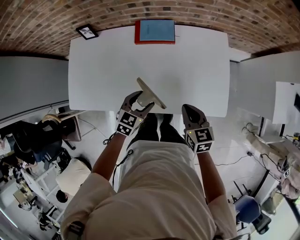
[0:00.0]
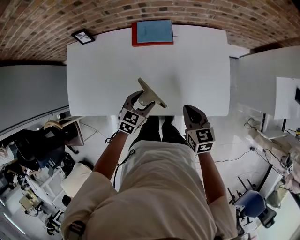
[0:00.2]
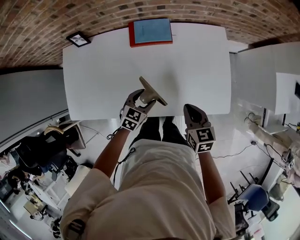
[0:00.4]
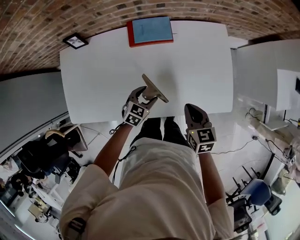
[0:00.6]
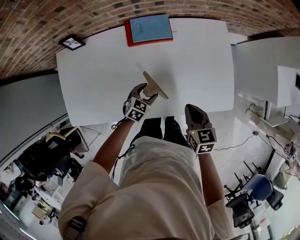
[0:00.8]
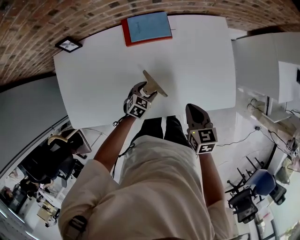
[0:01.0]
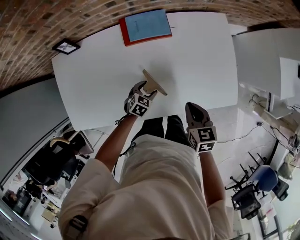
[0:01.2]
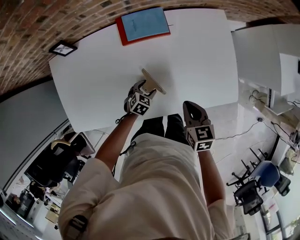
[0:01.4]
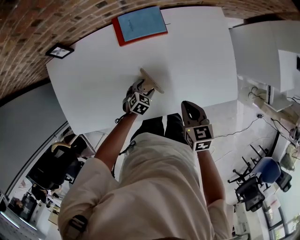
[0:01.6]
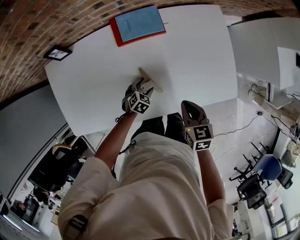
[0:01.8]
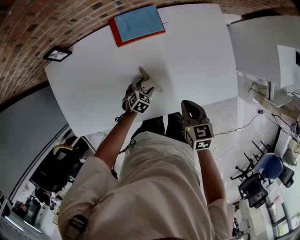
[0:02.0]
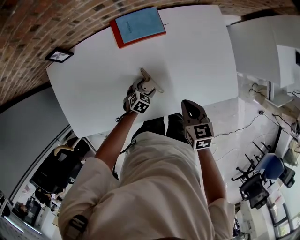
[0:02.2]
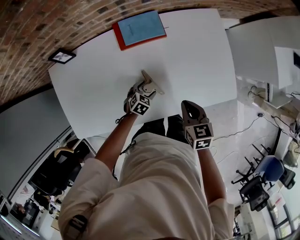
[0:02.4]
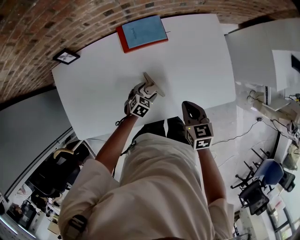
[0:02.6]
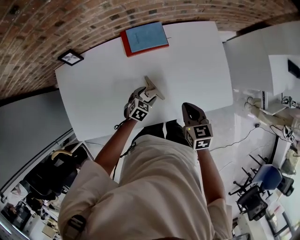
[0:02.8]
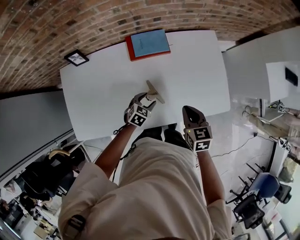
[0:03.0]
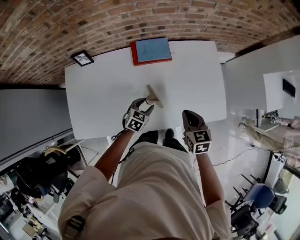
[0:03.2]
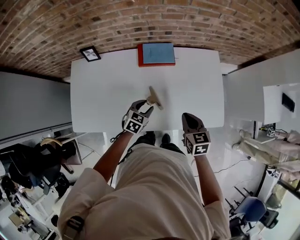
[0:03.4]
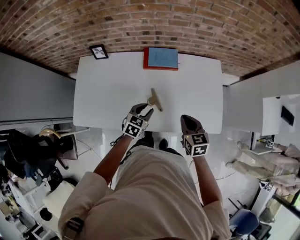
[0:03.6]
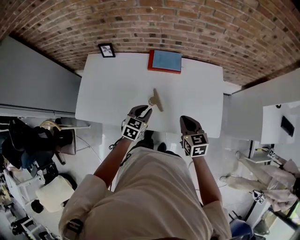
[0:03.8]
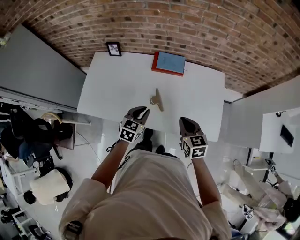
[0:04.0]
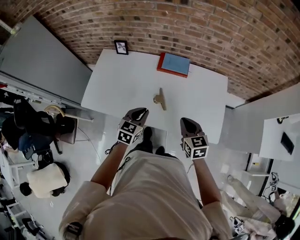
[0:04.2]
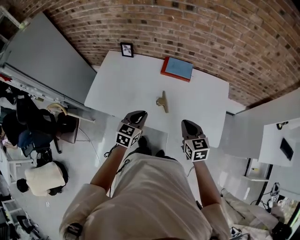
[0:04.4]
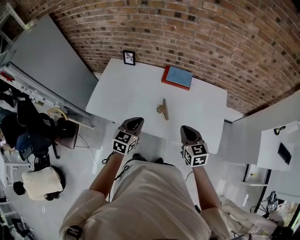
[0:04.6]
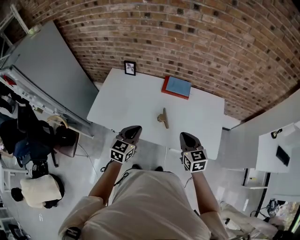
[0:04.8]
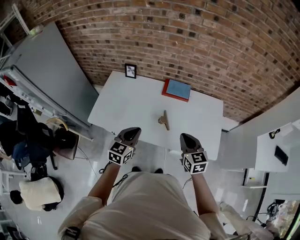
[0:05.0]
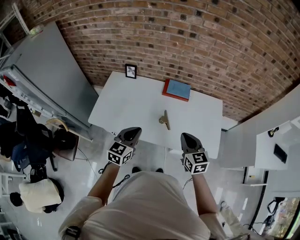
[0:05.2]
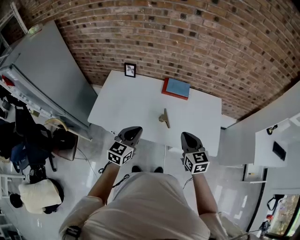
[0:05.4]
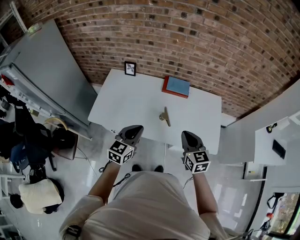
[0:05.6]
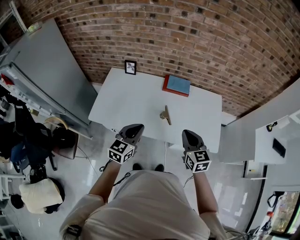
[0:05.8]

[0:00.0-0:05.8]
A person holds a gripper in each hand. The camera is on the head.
0:00.0 to 0:01.4: The right gripper heads downward and to the left, covering about 10 cm. The left gripper goes approximately 20 cm downward, and turns by about 20 degrees.
0:01.4 to 0:02.8: The left gripper shifts about 5 cm upward.
0:02.8 to 0:04.4: The left gripper goes about 30 cm upward, turns by about 50 degrees, and closes, while the right gripper goes about 10 cm upward, and swivels some 30 degrees.
0:04.4 to 0:05.8: Both grippers move upward, to the left and backward, about 15 cm.

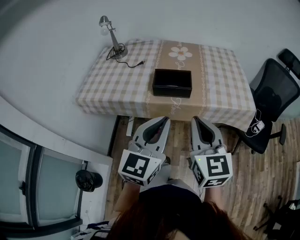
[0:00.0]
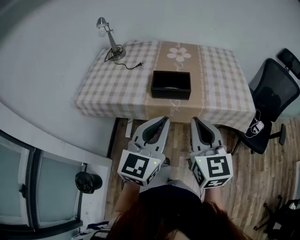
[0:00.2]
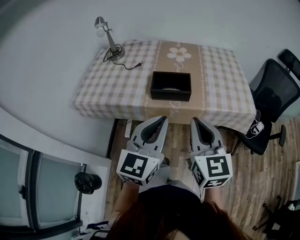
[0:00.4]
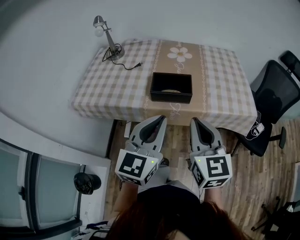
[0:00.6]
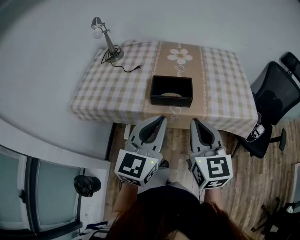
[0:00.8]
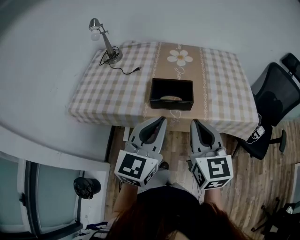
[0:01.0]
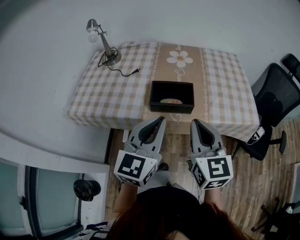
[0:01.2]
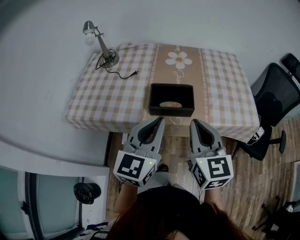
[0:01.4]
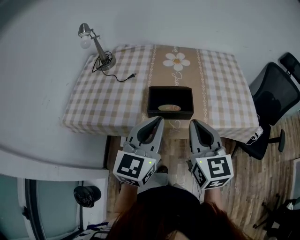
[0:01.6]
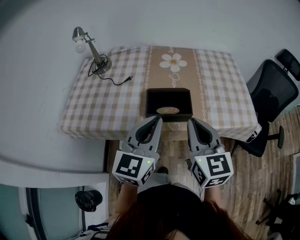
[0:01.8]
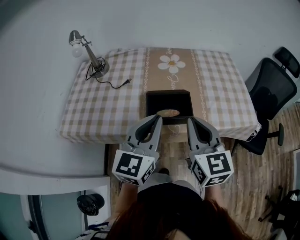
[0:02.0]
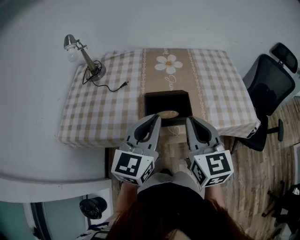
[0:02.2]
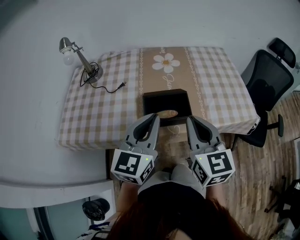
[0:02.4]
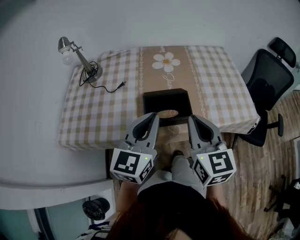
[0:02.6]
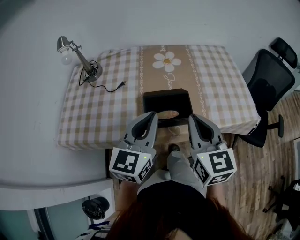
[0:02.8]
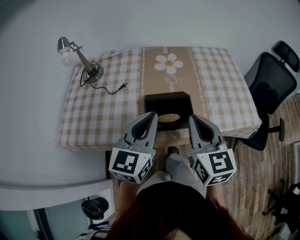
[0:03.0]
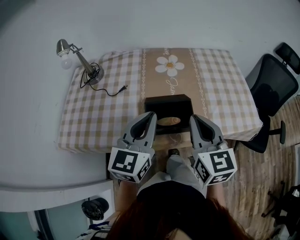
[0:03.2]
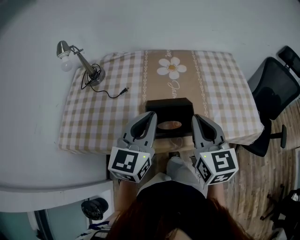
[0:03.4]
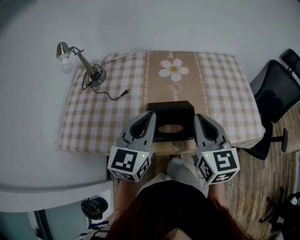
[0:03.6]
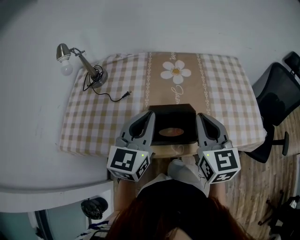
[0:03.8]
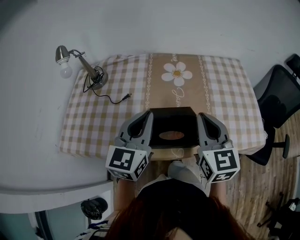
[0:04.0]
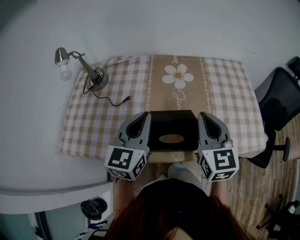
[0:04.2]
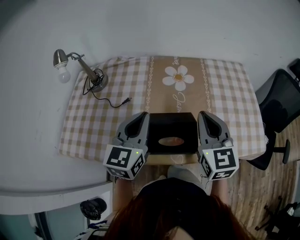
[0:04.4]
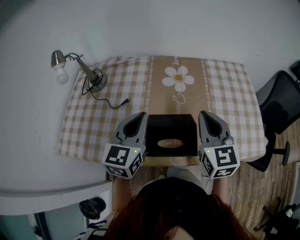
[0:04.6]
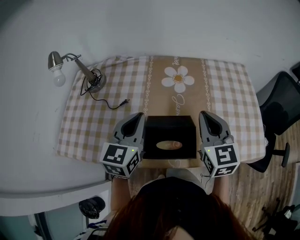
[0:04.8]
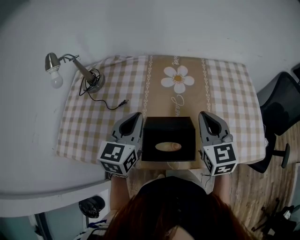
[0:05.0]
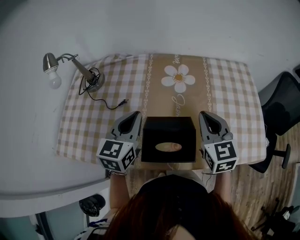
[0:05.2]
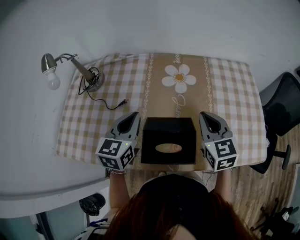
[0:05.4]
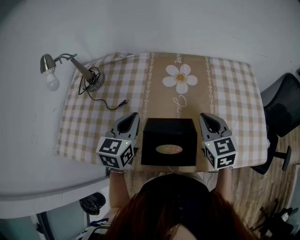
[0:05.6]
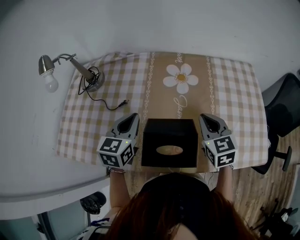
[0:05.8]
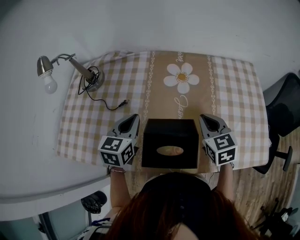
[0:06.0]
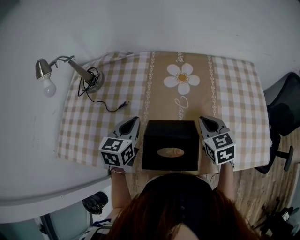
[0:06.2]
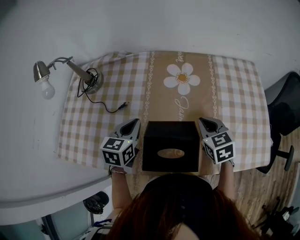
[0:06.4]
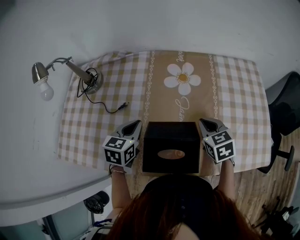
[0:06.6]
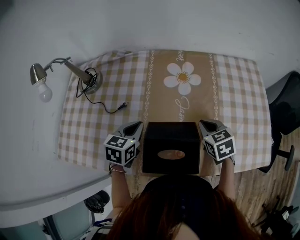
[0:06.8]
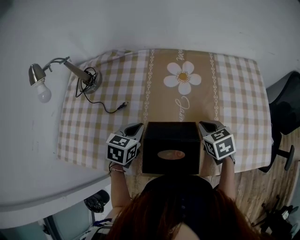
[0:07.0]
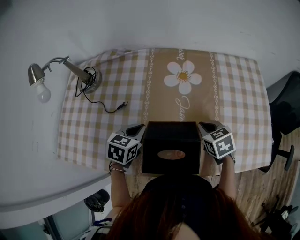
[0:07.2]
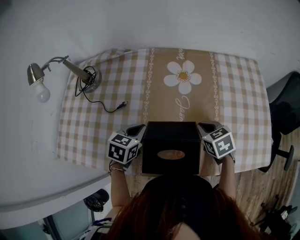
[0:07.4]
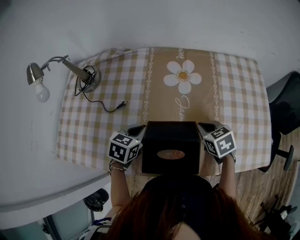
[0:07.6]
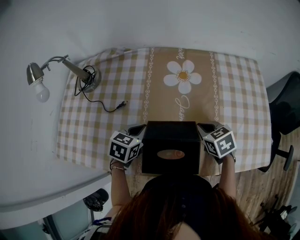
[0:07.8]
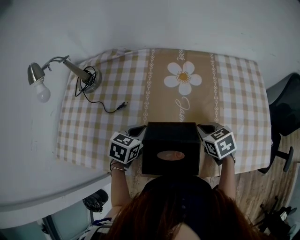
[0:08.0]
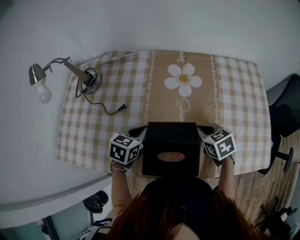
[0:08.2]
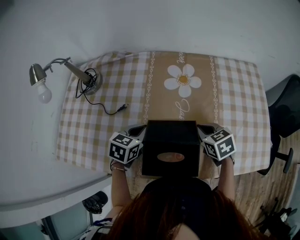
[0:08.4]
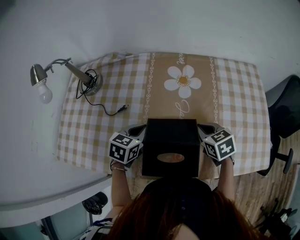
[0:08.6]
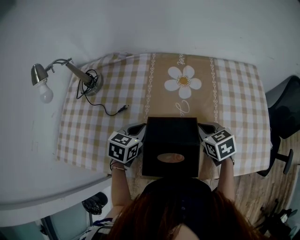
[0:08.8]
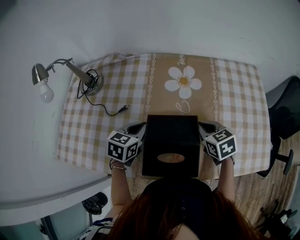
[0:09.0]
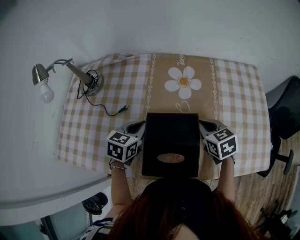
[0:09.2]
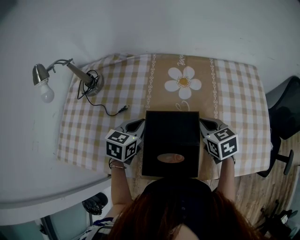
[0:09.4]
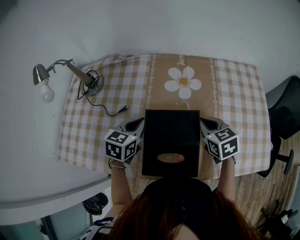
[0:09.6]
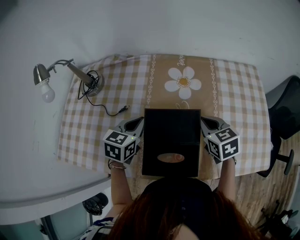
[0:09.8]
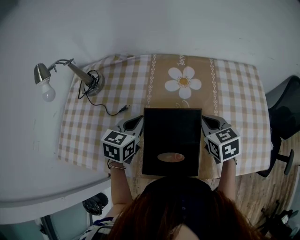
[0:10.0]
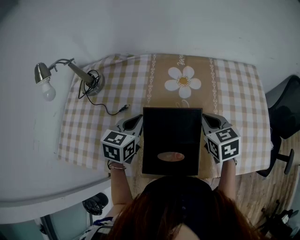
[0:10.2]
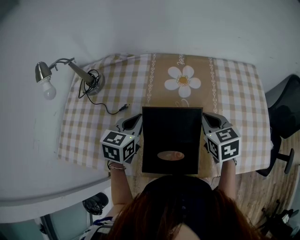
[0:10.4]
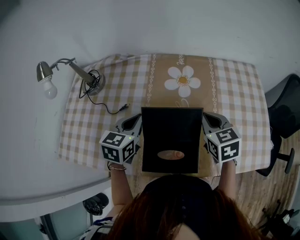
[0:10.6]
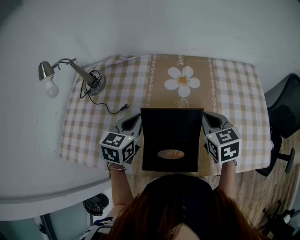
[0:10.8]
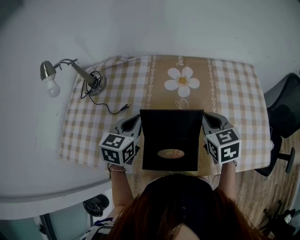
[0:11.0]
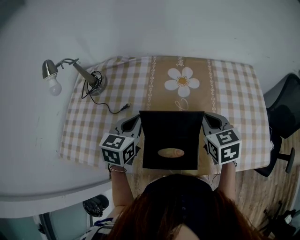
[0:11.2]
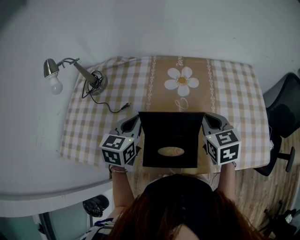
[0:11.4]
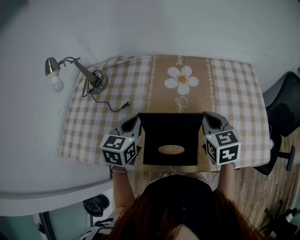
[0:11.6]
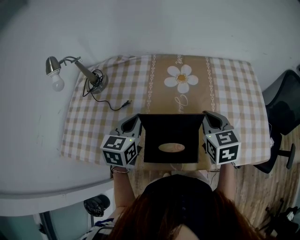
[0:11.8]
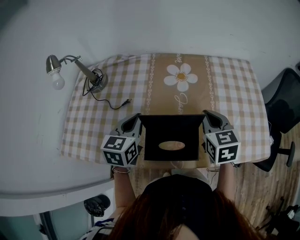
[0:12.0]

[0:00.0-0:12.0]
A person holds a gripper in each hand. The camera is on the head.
0:00.0 to 0:01.6: The two grippers go some 15 cm forward.
0:01.6 to 0:03.0: The grippers both shift forward by about 10 cm.
0:03.0 to 0:04.4: The two grippers go about 10 cm forward.
0:04.4 to 0:06.0: The grippers both shift downward and forward by some 15 cm. The right gripper swivels approximately 20 degrees.
0:06.0 to 0:07.6: Both grippers travel together downward, approximately 10 cm. The left gripper rotates about 30 degrees. The right gripper rotates some 20 degrees.
0:07.6 to 0:09.0: The grippers make only small movements.
0:09.0 to 0:10.4: Both grippers travel together upward, roughly 5 cm.
0:10.4 to 0:12.0: The left gripper moves about 5 cm. The right gripper ends up about 5 cm from where it was.

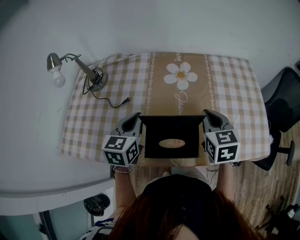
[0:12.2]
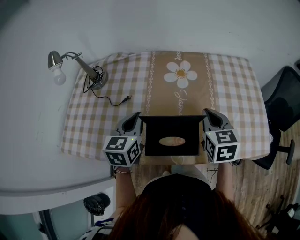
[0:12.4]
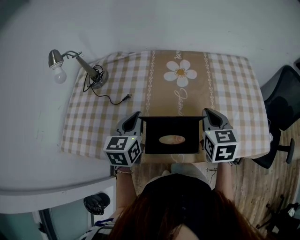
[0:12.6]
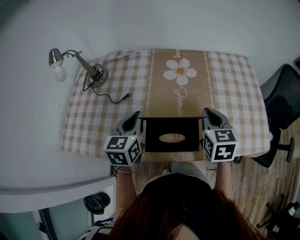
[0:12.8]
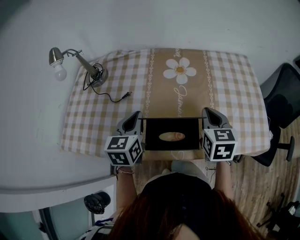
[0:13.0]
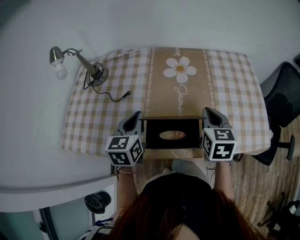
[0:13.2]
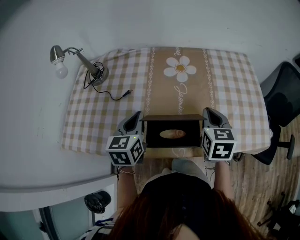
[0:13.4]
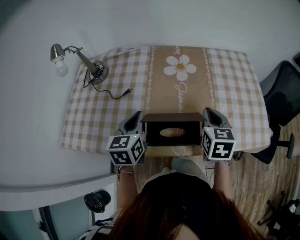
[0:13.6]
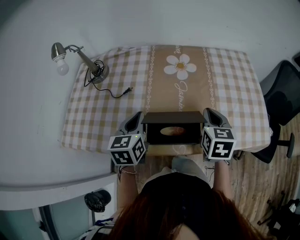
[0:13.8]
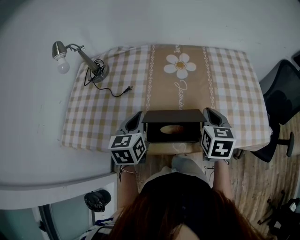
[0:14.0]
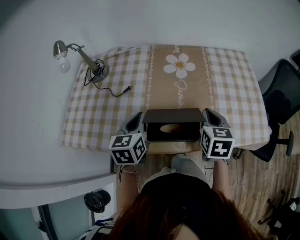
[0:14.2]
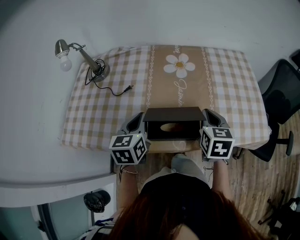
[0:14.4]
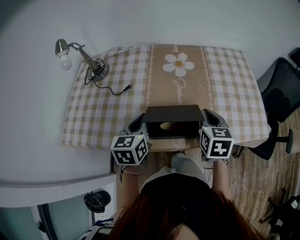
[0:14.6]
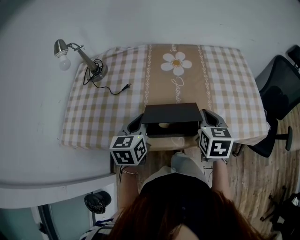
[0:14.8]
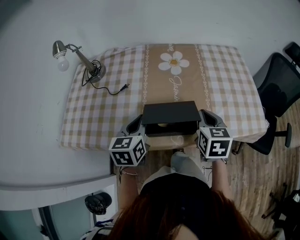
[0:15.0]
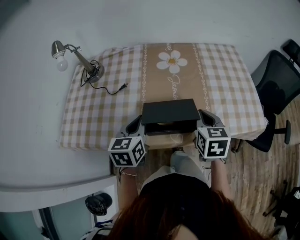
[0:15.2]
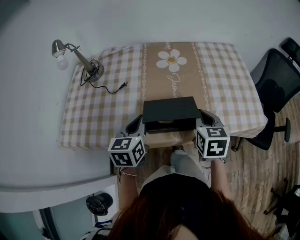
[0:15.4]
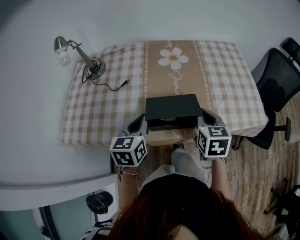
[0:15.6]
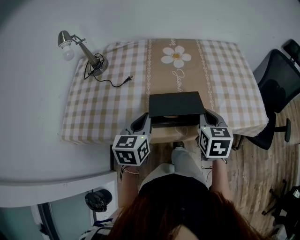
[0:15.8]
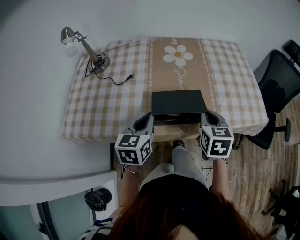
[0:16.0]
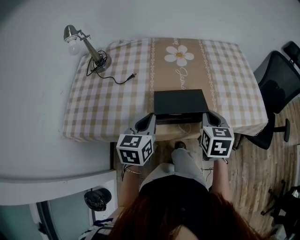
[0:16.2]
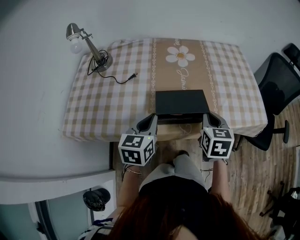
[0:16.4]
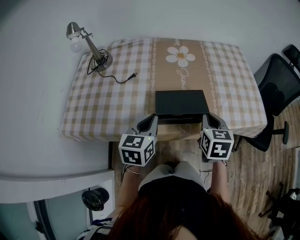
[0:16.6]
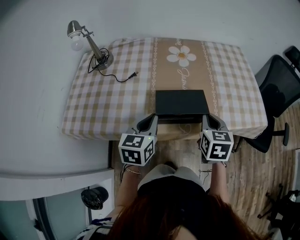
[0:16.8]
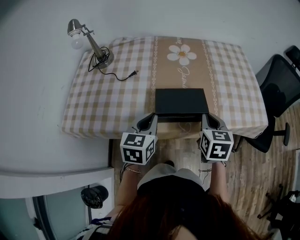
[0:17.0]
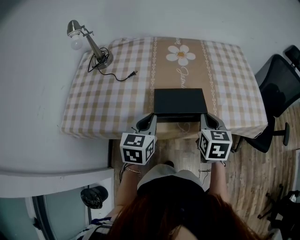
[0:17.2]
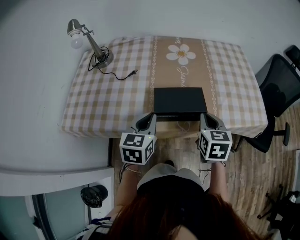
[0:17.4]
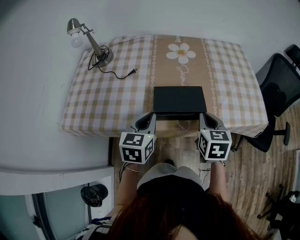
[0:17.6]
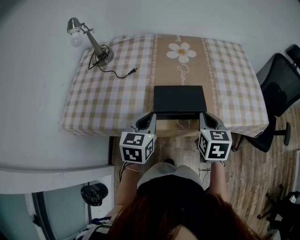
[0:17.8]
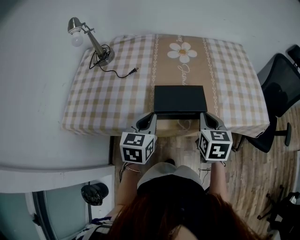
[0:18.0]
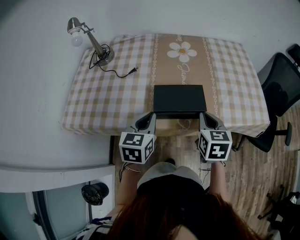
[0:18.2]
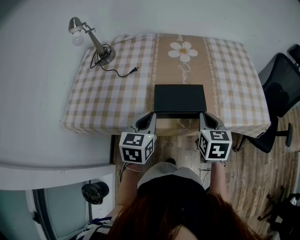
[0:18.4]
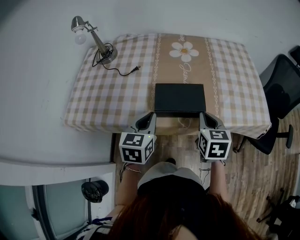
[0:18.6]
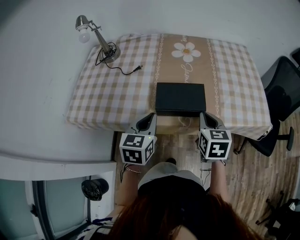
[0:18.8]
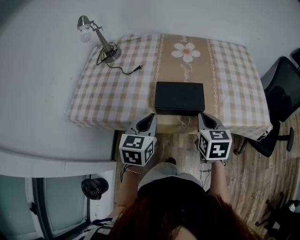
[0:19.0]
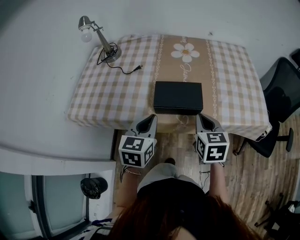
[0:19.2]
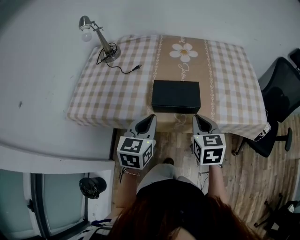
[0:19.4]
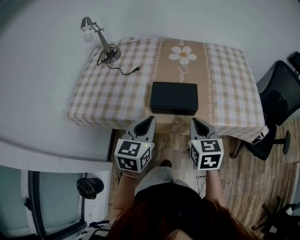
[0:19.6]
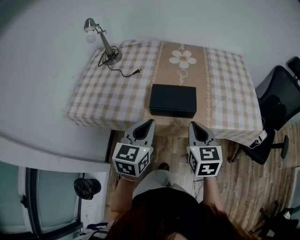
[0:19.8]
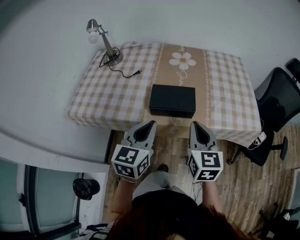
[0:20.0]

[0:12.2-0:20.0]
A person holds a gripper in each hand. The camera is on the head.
0:12.2 to 0:13.8: The grippers stay close to where they were, moving slightly.
0:13.8 to 0:15.4: The two grippers go approximately 5 cm backward.
0:15.4 to 0:18.4: The grippers make only small movements.
0:18.4 to 0:20.0: Both grippers travel together backward and upward, approximately 10 cm.
